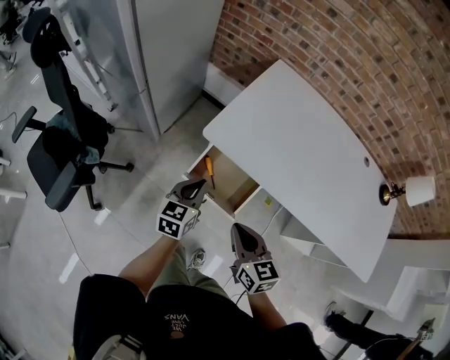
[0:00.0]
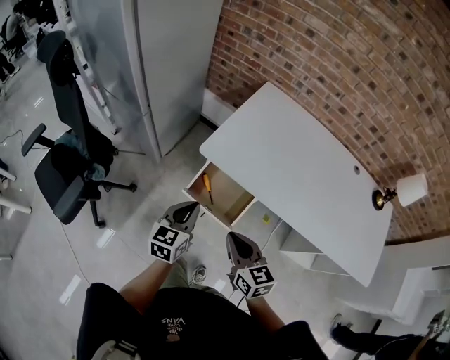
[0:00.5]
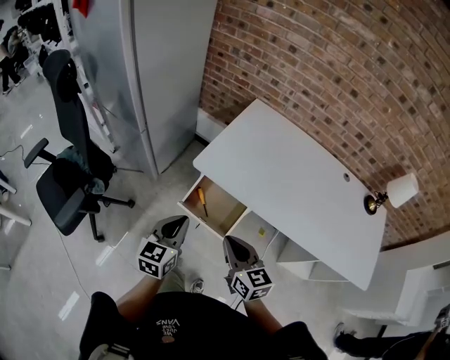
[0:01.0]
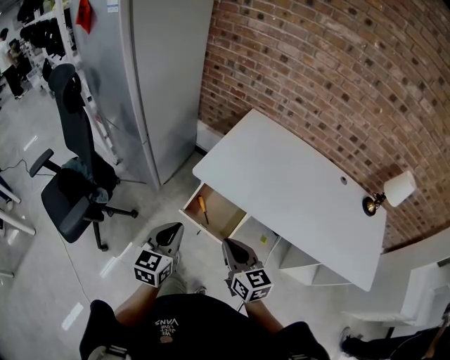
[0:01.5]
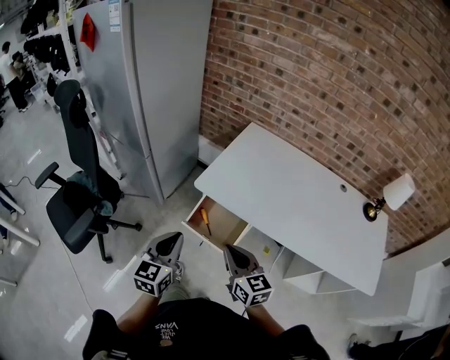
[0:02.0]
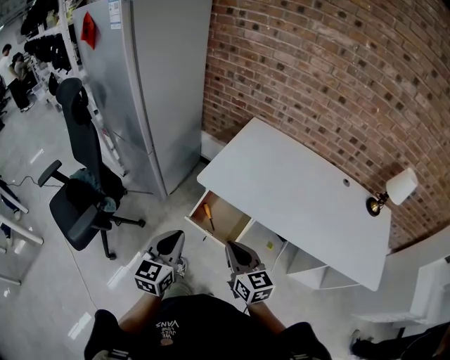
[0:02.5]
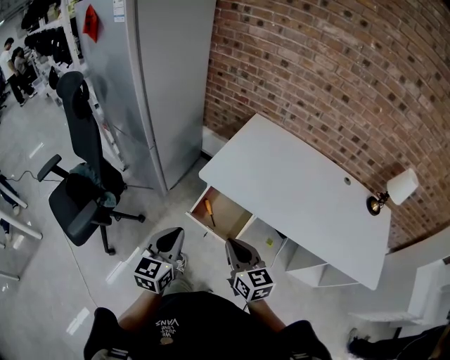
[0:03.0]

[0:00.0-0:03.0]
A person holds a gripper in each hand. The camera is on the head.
0:00.0 to 0:01.5: The left gripper goes some 20 cm upward and backward. The right gripper heads upward, covering roughly 10 cm.
0:01.5 to 0:03.0: There are only small adjustments of the grippers.

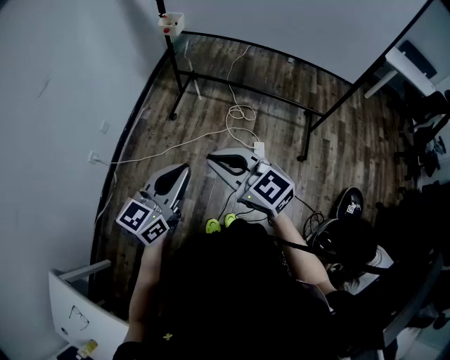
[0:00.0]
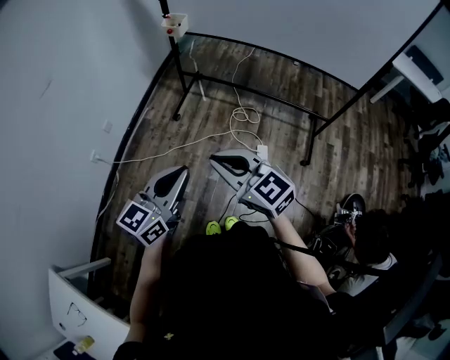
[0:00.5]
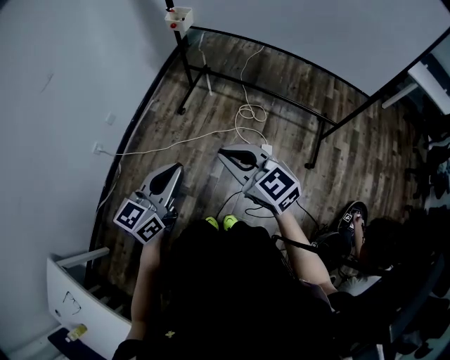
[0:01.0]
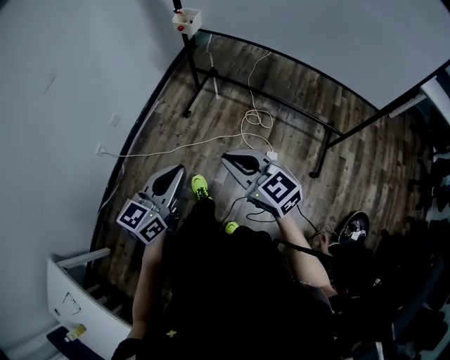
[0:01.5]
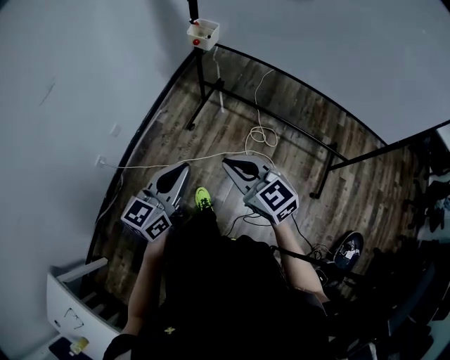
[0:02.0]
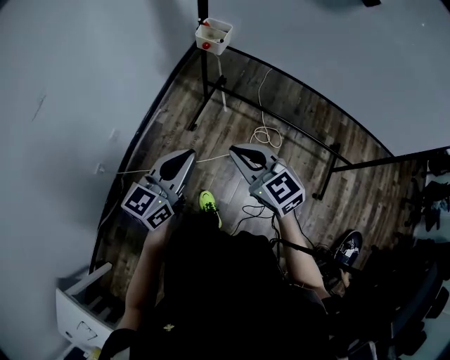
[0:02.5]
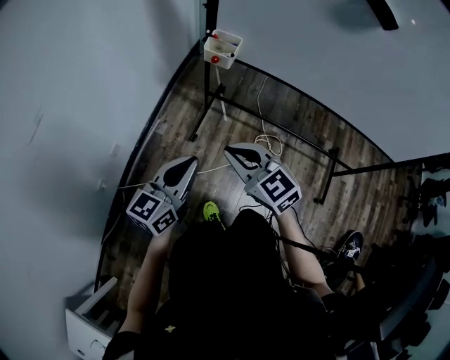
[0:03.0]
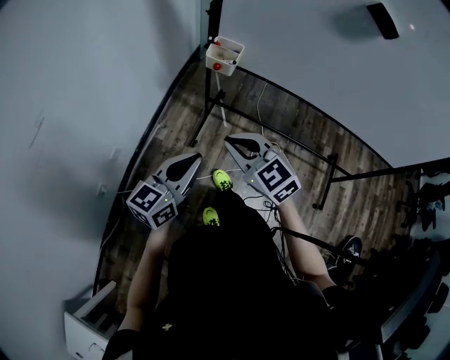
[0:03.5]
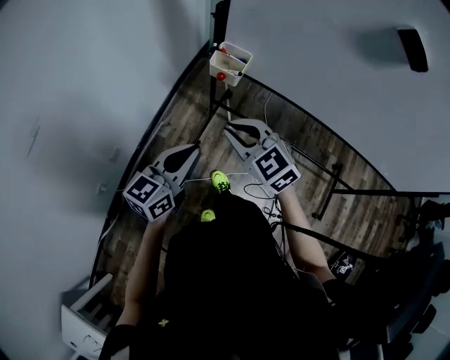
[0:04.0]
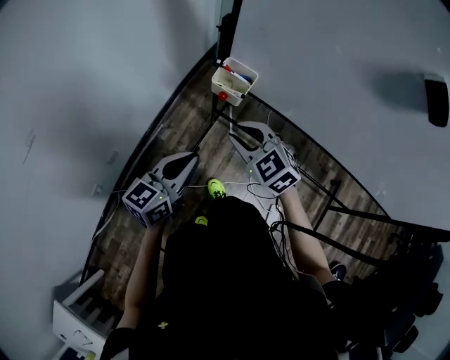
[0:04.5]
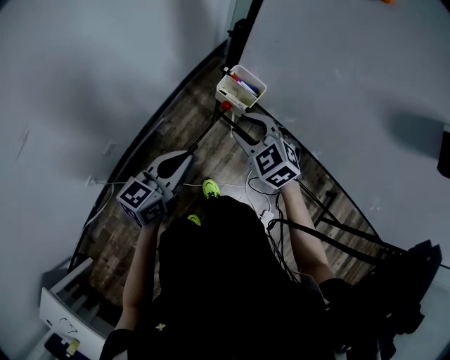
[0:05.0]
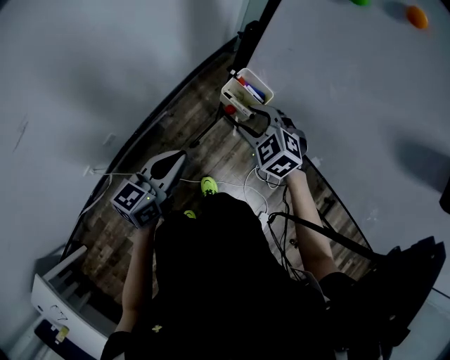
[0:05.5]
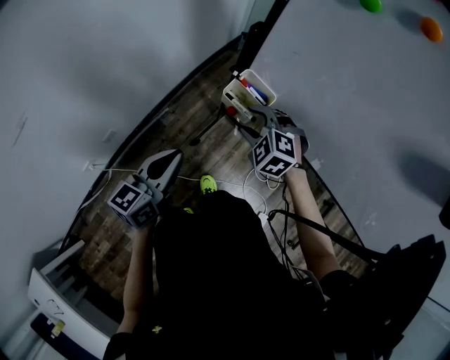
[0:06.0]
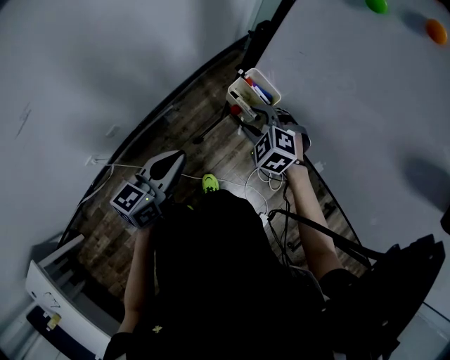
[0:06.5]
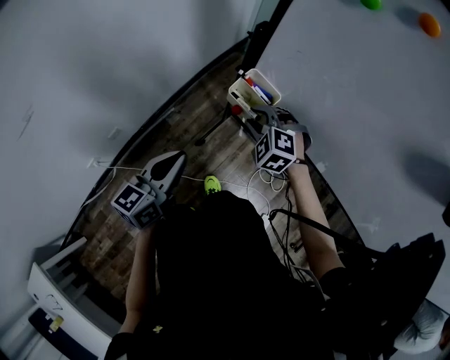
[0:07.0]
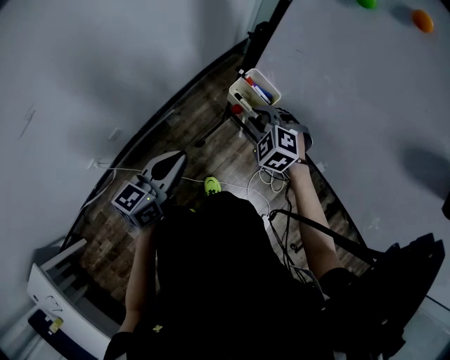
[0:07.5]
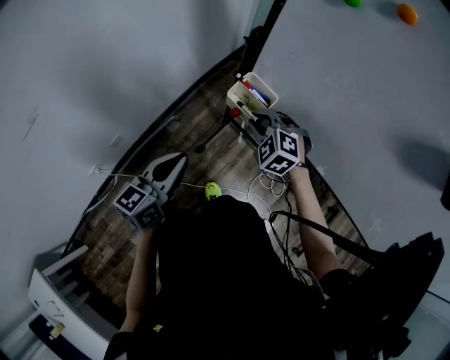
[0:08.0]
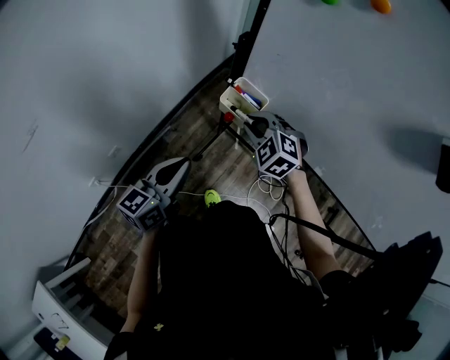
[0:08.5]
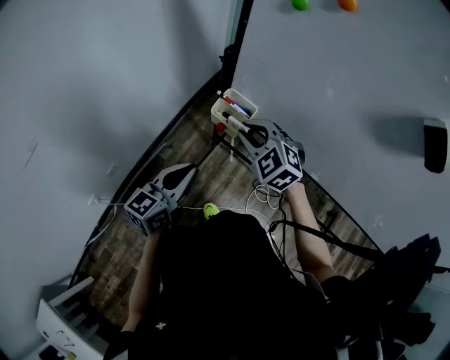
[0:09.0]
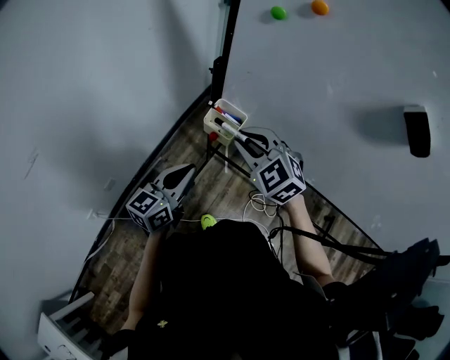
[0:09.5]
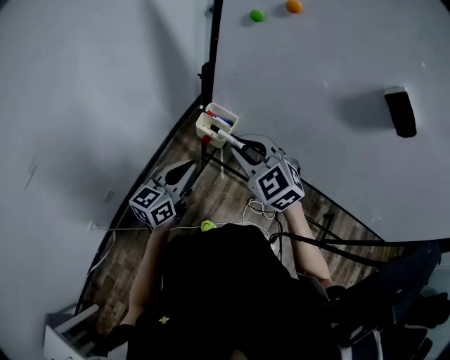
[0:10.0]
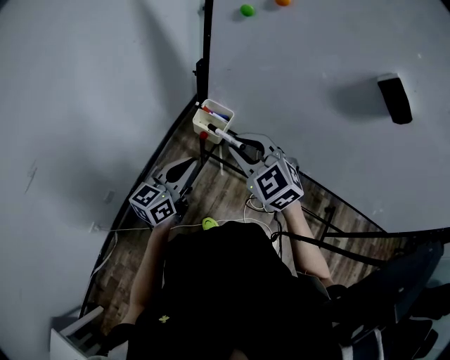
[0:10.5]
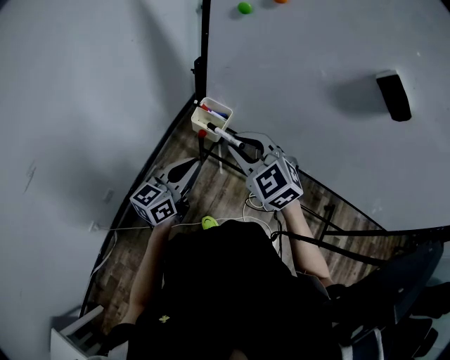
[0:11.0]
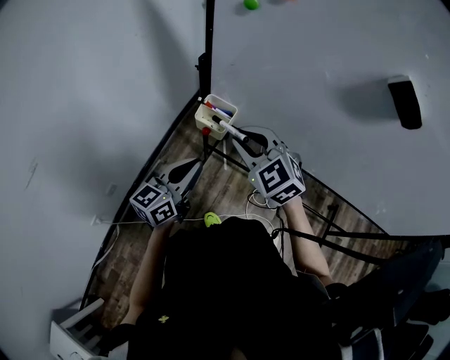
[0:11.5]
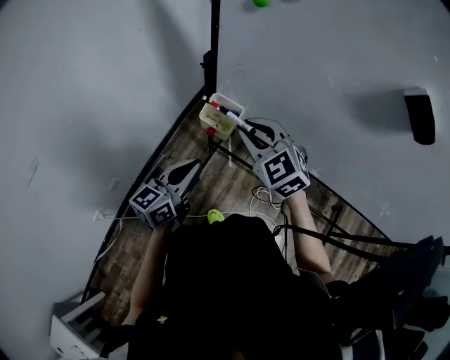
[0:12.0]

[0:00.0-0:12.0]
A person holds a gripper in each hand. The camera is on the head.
0:00.0 to 0:02.0: Both grippers move forward, roughly 25 cm.
0:02.0 to 0:04.0: The grippers both shift forward by some 30 cm.
0:04.0 to 0:06.0: The left gripper shifts about 10 cm forward, and rotates roughly 20 degrees. The right gripper heads forward and downward, covering some 20 cm, rotates approximately 40 degrees, and opens up.
0:06.0 to 0:08.0: The right gripper closes up.
0:08.0 to 0:10.0: The left gripper heads to the right, covering some 5 cm; the right gripper is displaced upward and backward by roughly 20 cm, and changes its angle by approximately 30 degrees.
0:10.0 to 0:12.0: The grippers stay close to where they were, moving slightly.

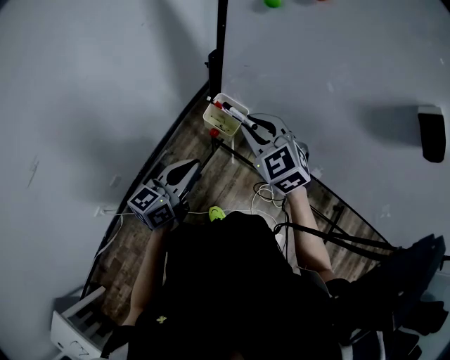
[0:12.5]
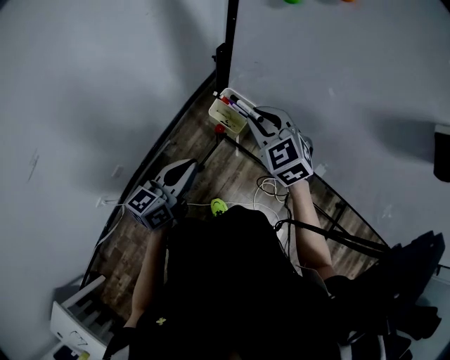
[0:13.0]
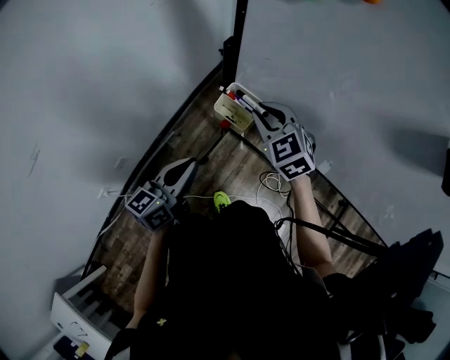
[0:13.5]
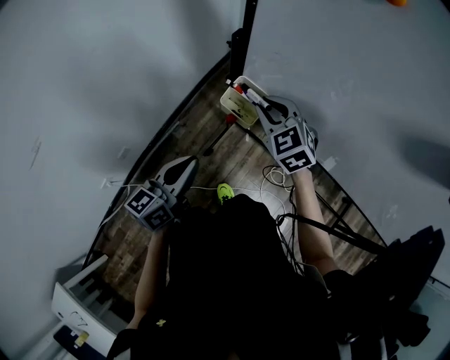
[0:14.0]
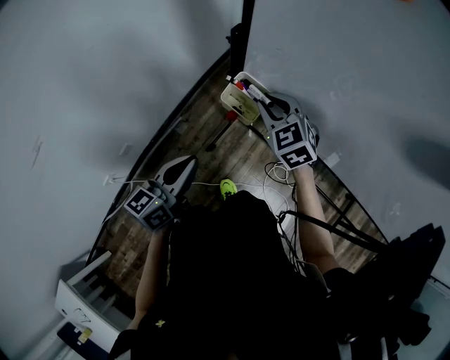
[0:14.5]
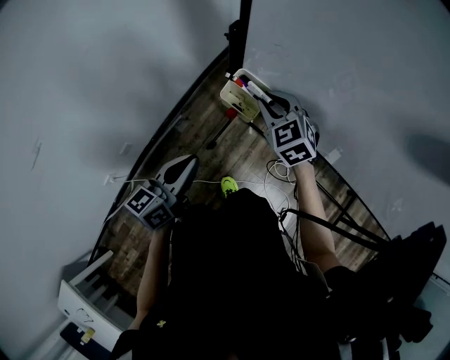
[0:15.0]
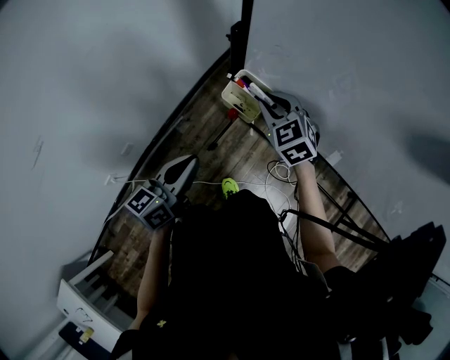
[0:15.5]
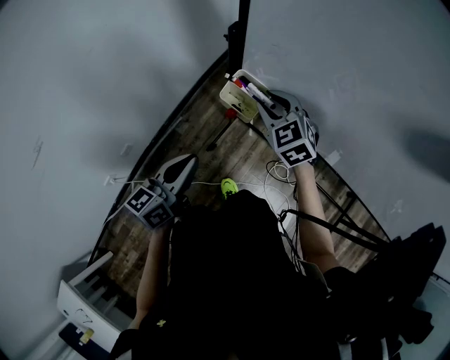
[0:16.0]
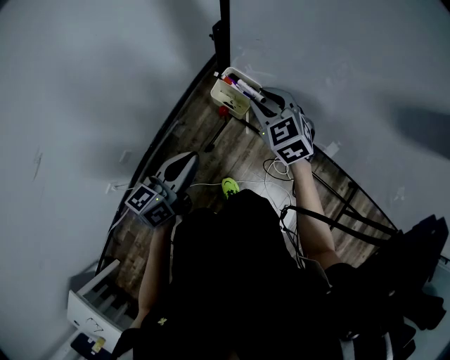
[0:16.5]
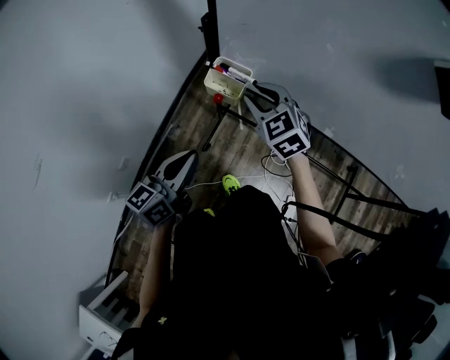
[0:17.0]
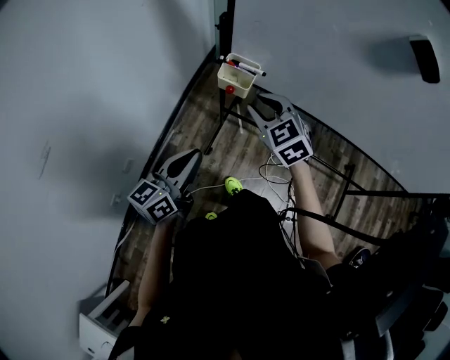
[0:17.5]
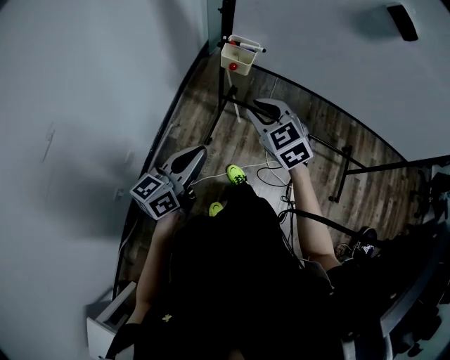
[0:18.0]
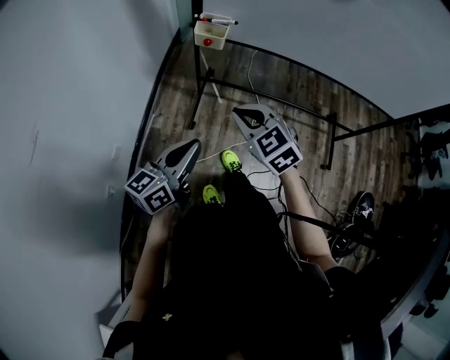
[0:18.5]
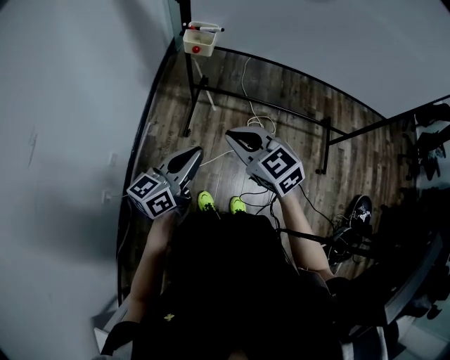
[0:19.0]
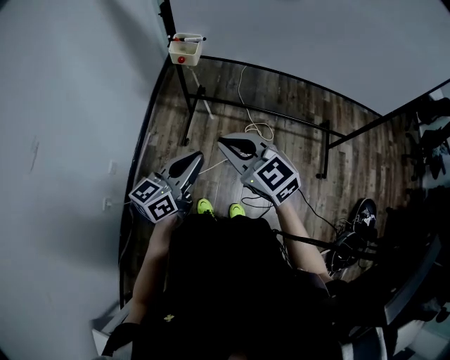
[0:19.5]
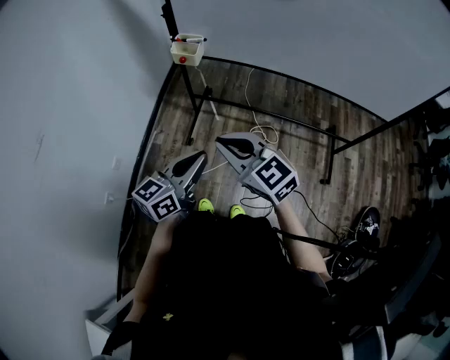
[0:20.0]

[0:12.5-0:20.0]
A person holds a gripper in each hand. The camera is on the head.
0:12.5 to 0:14.5: The right gripper moves downward and forward, about 10 cm.
0:14.5 to 0:16.5: The grippers stay close to where they were, moving slightly.
0:16.5 to 0:18.0: Both grippers move backward, roughly 20 cm.
0:18.0 to 0:20.0: The right gripper travels backward and to the right by some 20 cm, and rotates roughly 20 degrees. The left gripper goes roughly 20 cm to the right and backward.

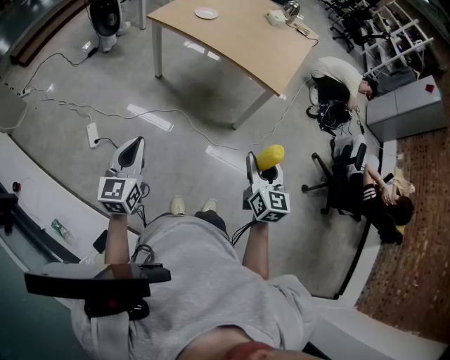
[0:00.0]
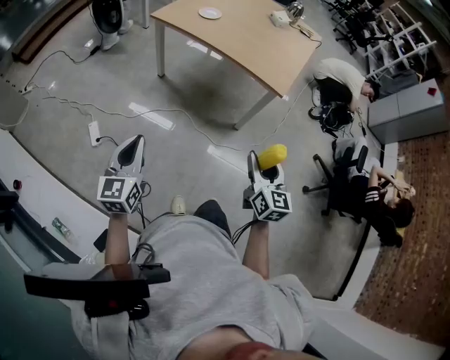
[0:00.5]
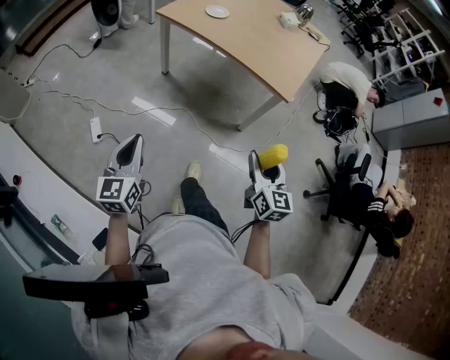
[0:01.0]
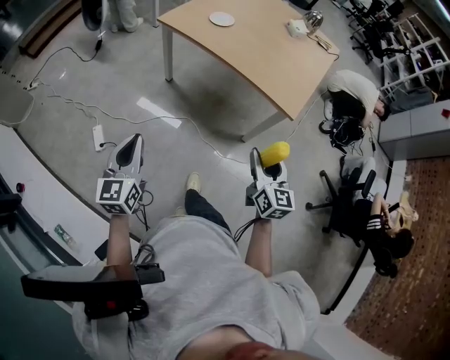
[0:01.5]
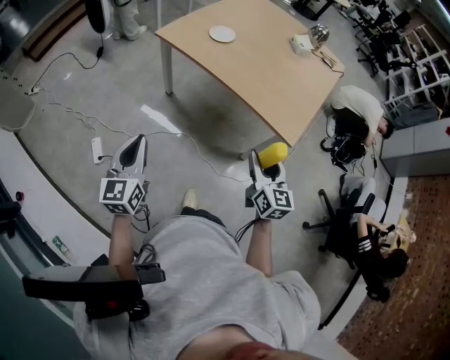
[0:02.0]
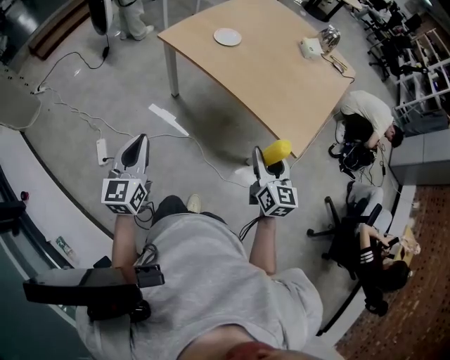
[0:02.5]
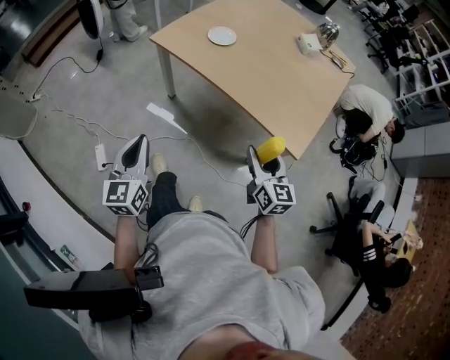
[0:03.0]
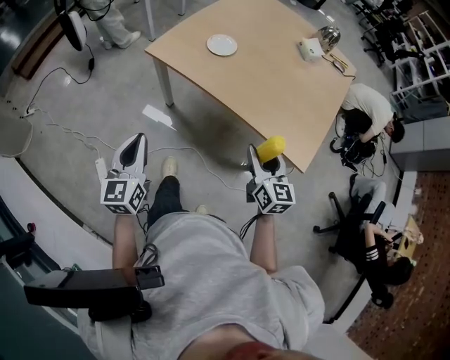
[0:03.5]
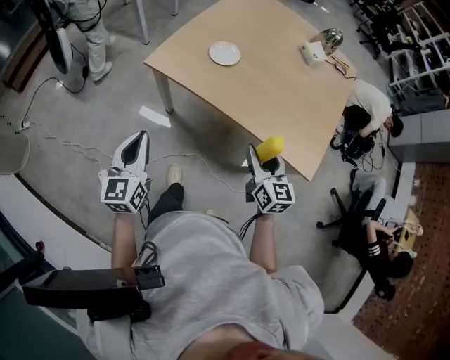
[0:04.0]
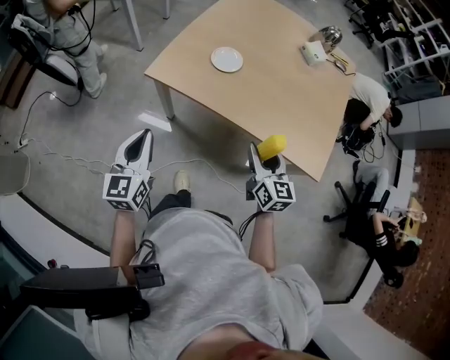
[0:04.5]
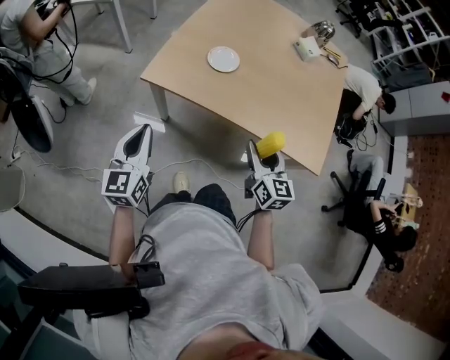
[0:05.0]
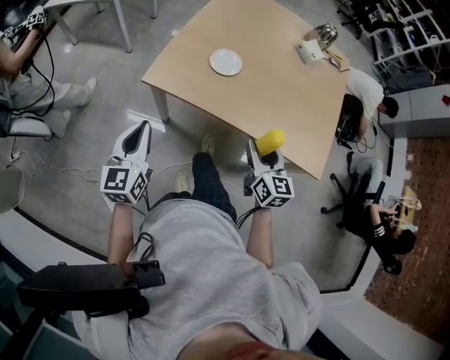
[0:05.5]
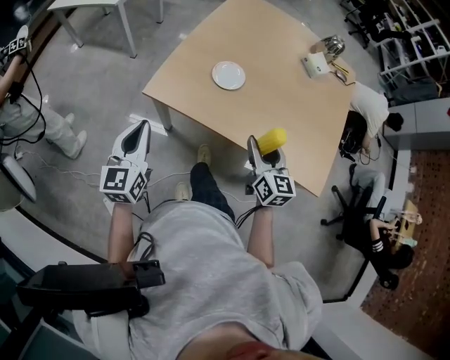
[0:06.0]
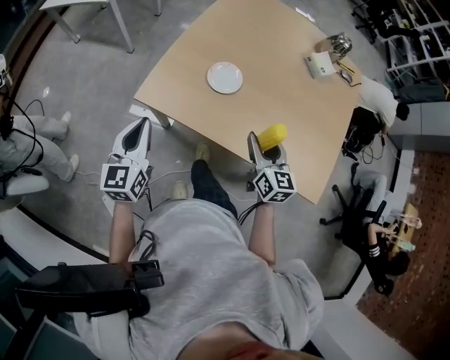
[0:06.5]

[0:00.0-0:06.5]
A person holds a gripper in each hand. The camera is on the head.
0:00.0 to 0:02.0: The grippers both shift forward by about 25 cm.
0:02.0 to 0:04.5: The right gripper travels forward and to the left by approximately 35 cm, while the left gripper shifts about 35 cm forward.
0:04.5 to 0:06.5: The grippers both shift forward by roughly 20 cm.
